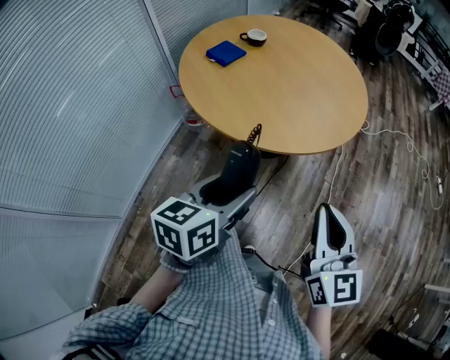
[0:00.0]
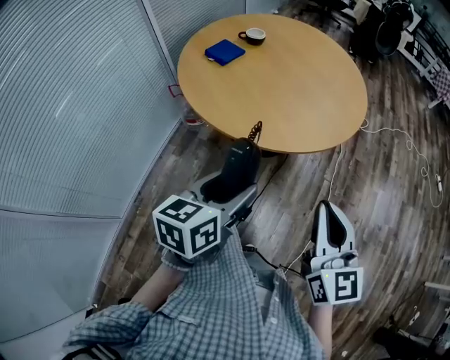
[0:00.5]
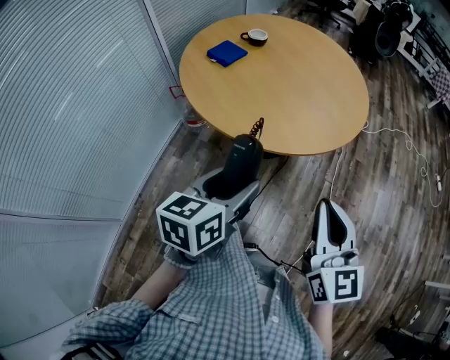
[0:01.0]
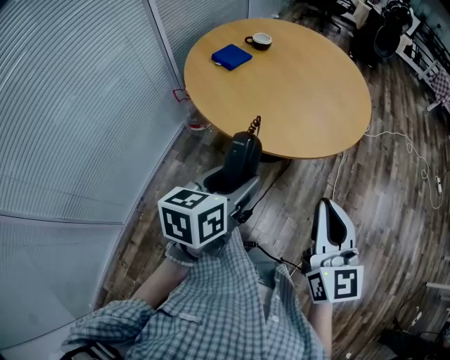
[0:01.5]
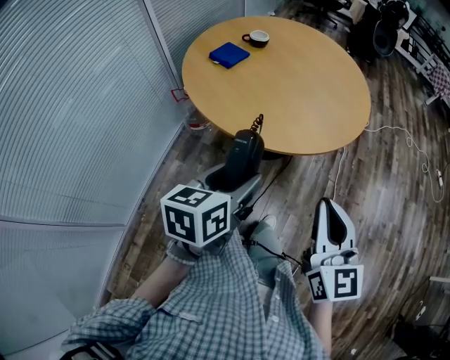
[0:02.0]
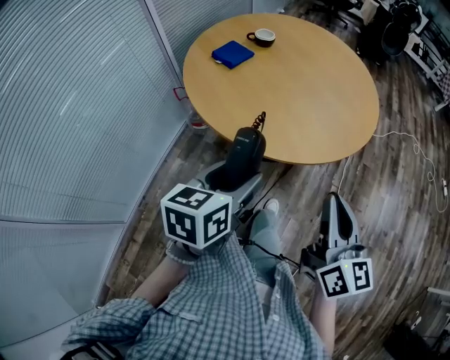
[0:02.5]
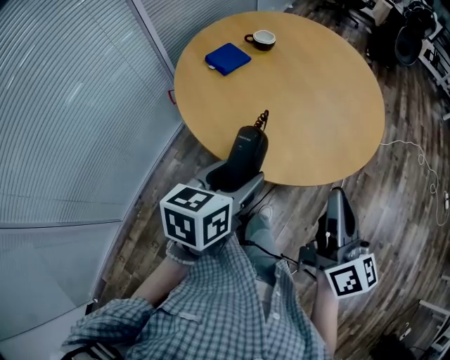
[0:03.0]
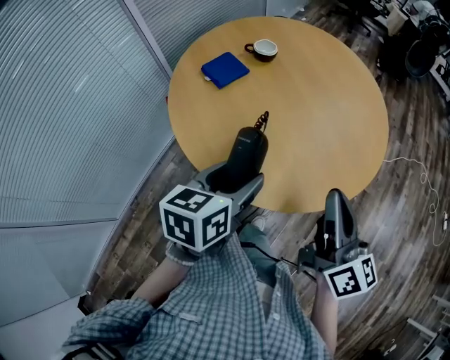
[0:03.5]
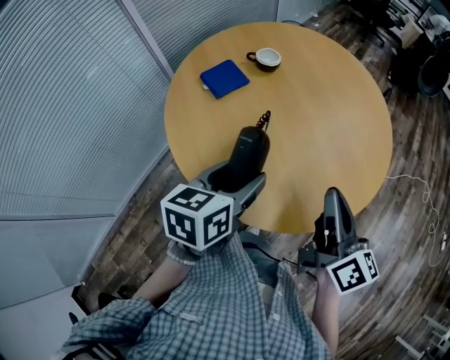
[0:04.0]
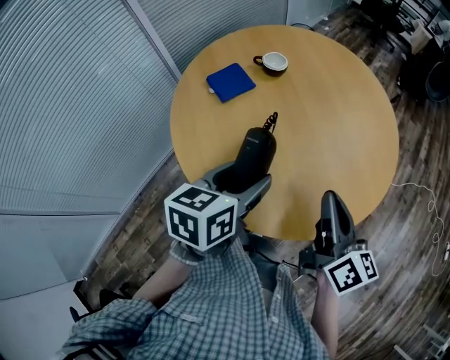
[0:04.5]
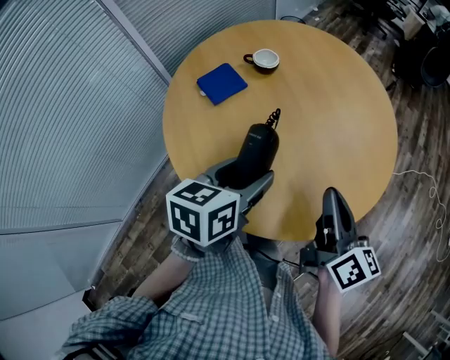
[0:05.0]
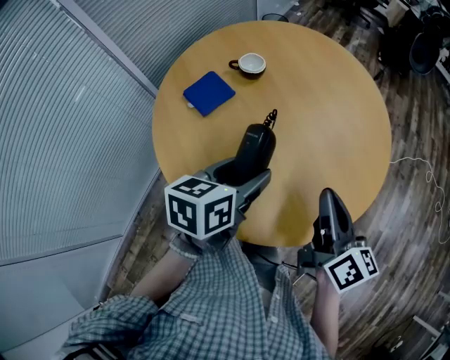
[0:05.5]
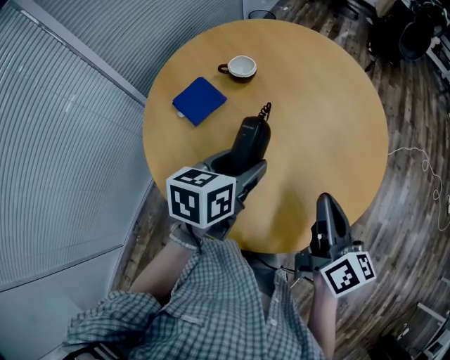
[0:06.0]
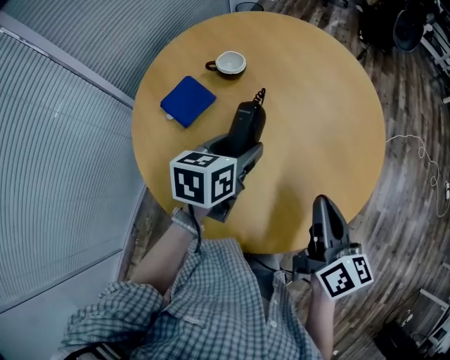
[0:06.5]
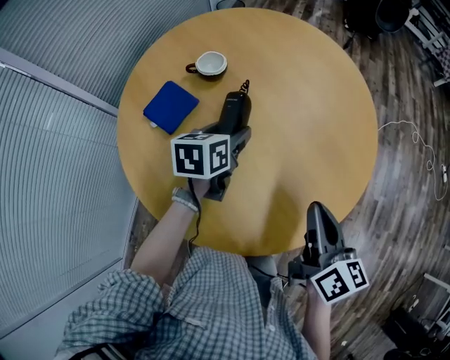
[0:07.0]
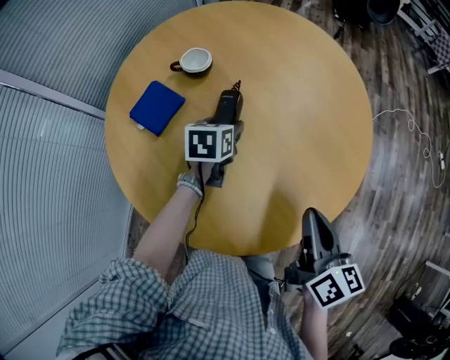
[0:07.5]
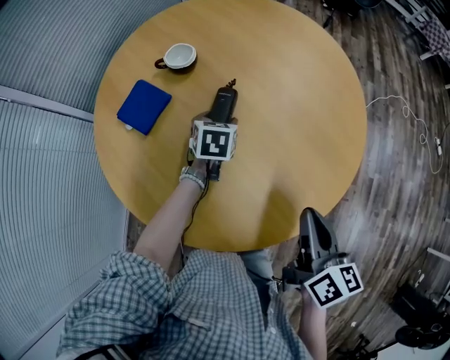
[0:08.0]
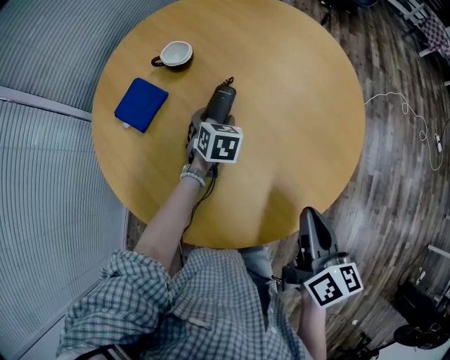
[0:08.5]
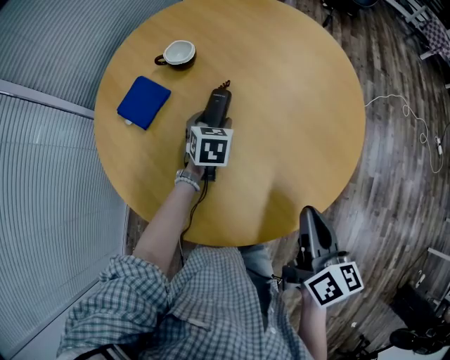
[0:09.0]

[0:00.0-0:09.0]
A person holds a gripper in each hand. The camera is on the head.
0.0 to 2.0 s: There are only small adjustments of the grippers.
2.0 to 4.5 s: The grippers both shift forward by roughly 35 cm. The right gripper turns by some 40 degrees.
4.5 to 7.0 s: The left gripper travels forward and downward by approximately 25 cm; the right gripper ends up about 5 cm from where it was, and turns by approximately 20 degrees.
7.0 to 9.0 s: The right gripper shifts by approximately 5 cm; the left gripper heads downward, covering approximately 10 cm, and rotates about 30 degrees.

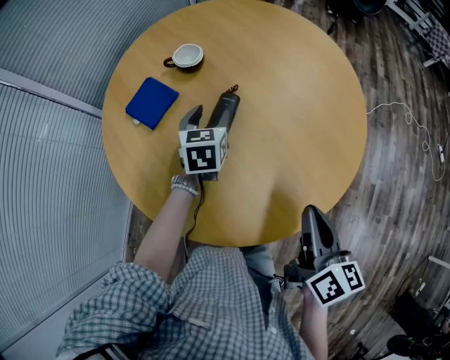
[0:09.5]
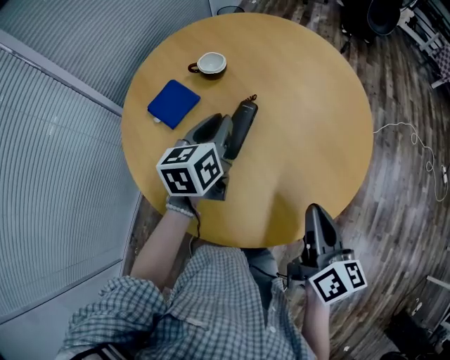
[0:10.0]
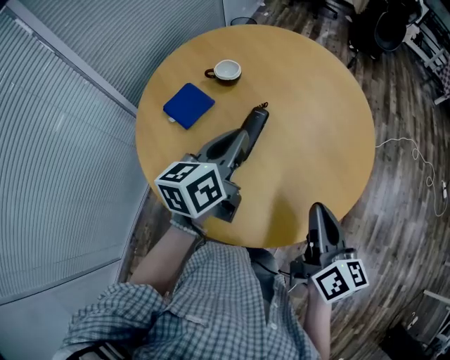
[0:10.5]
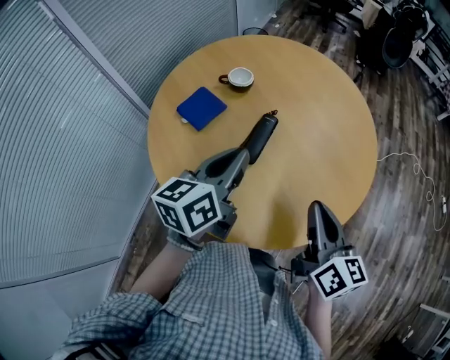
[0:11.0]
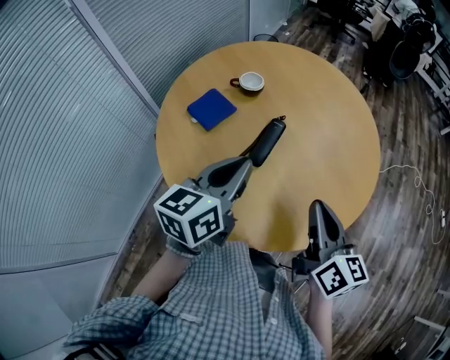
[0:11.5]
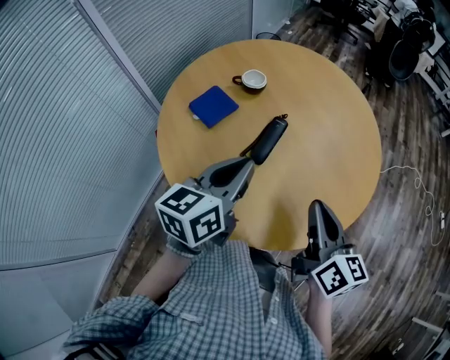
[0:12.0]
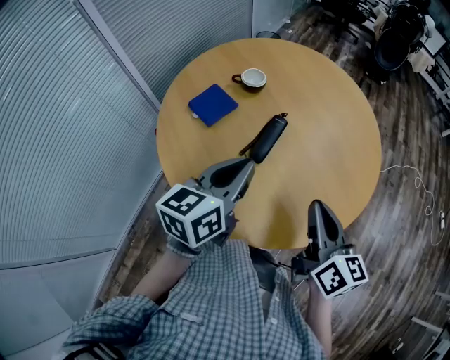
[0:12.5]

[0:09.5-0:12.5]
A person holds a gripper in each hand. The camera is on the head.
9.5 to 11.0 s: The right gripper is displaced upward and to the left by about 10 cm. The left gripper heads upward and backward, covering roughly 25 cm, turns by roughly 40 degrees, and closes.
11.0 to 12.5 s: There are only small adjustments of the grippers.

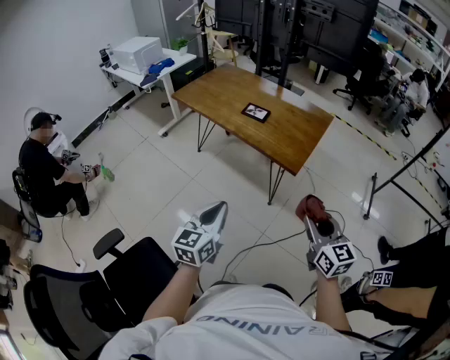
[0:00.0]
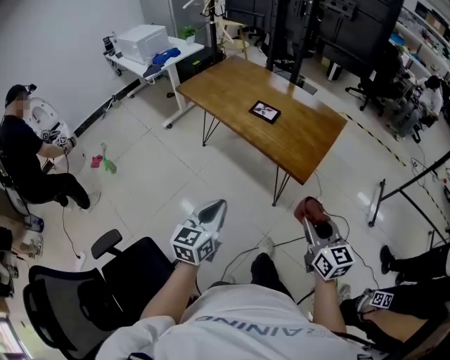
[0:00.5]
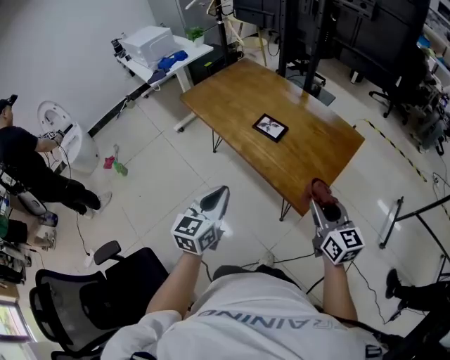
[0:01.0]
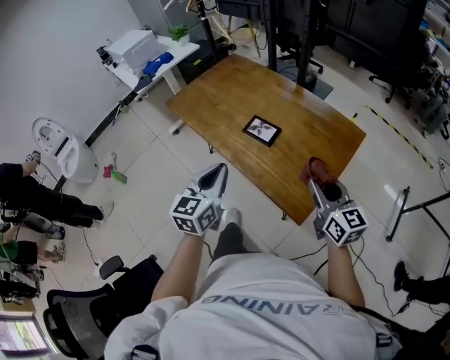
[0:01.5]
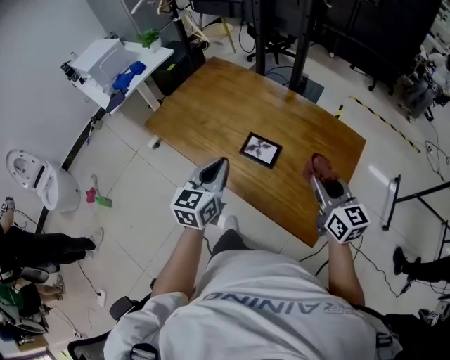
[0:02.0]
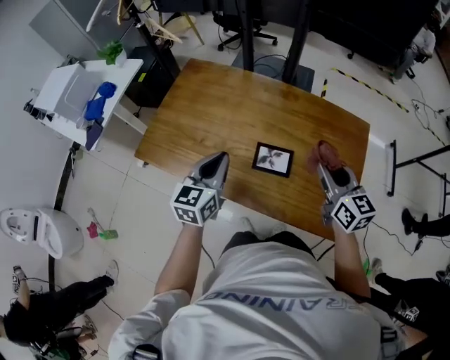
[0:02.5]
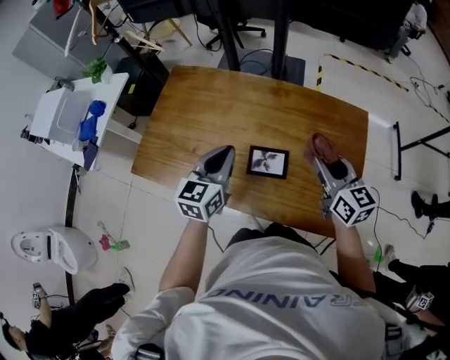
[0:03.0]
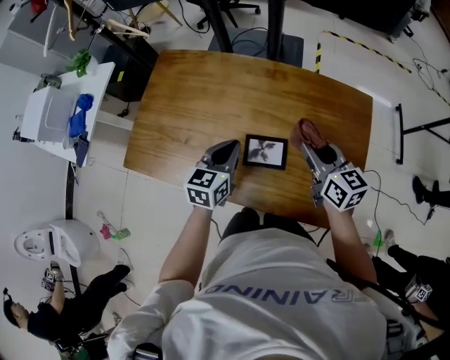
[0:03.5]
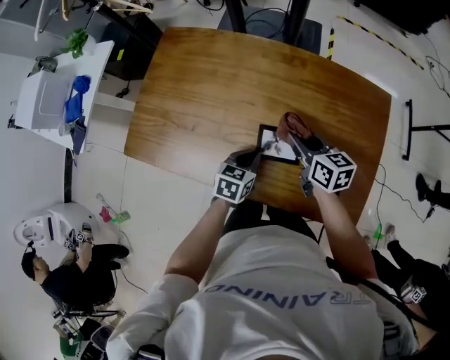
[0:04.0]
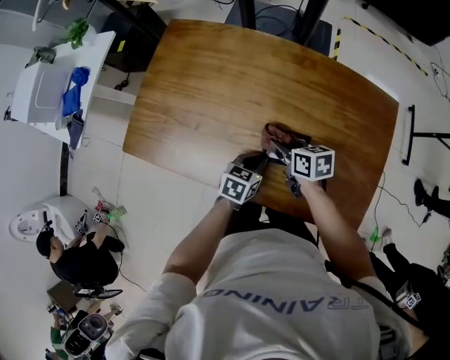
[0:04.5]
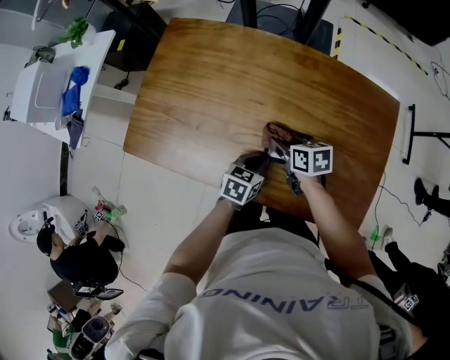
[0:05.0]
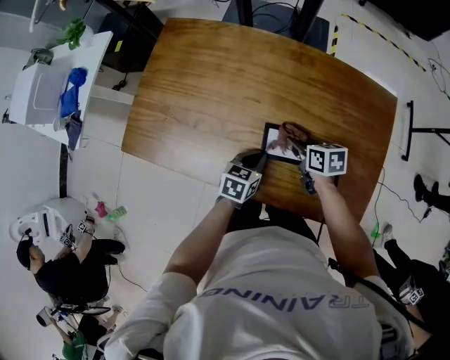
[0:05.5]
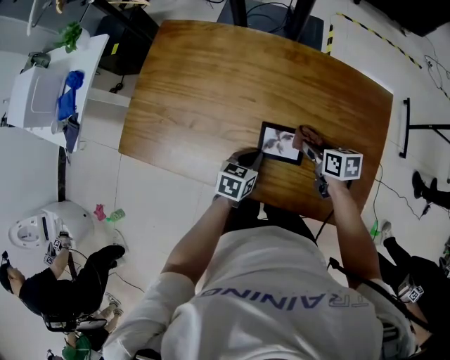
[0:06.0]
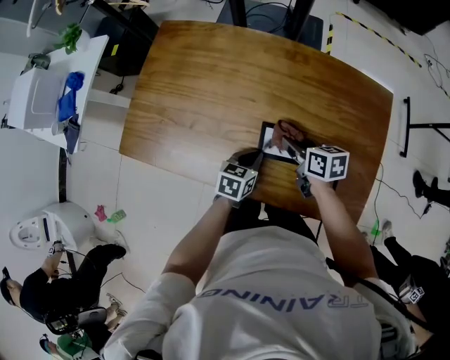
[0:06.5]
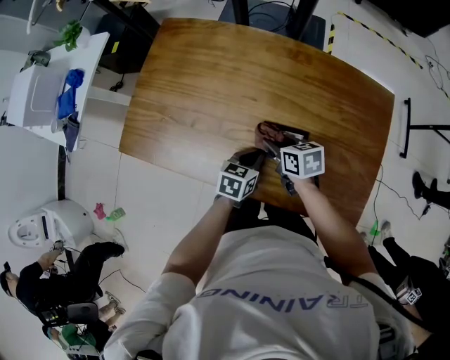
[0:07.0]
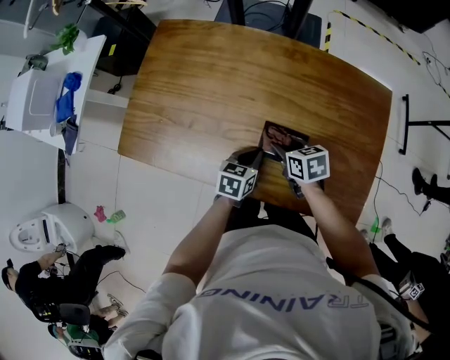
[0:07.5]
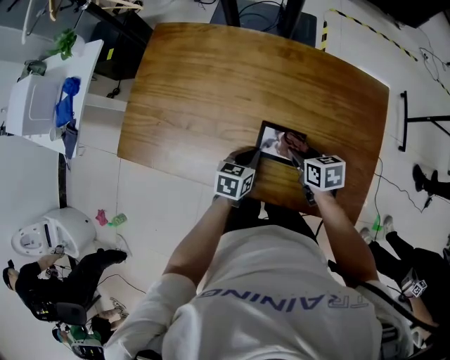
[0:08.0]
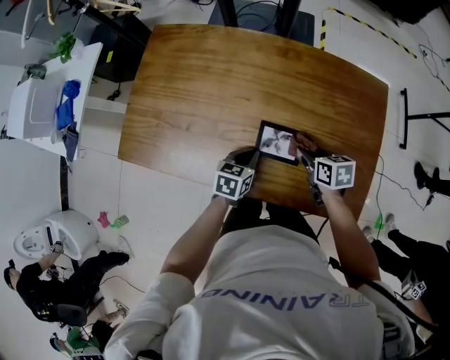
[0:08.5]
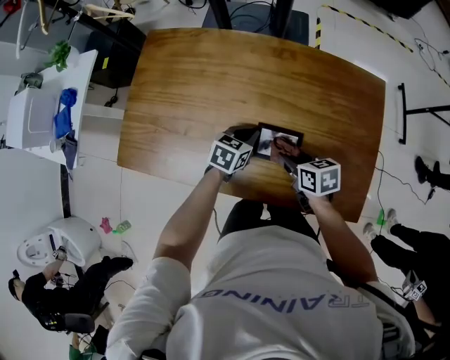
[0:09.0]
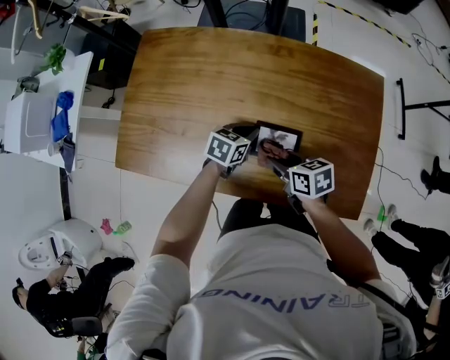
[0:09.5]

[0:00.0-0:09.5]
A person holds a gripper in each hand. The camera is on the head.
0.0 to 2.0 s: The pair of grippers is taken forward, approximately 50 cm.
2.0 to 4.0 s: The left gripper shifts approximately 25 cm downward and forward, and tips its fingers downward by some 30 degrees; the right gripper goes some 25 cm forward, downward and to the left, and rotates roughly 30 degrees.
4.0 to 5.5 s: The right gripper travels downward by approximately 10 cm, and turns by about 20 degrees.
5.5 to 7.5 s: The right gripper travels to the left and back again, some 5 cm each way.
7.5 to 9.5 s: The right gripper reaches approximately 10 cm to the right, then returns. Meanwhile the left gripper travels forward by some 5 cm.

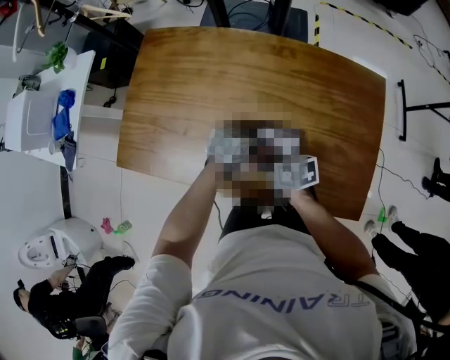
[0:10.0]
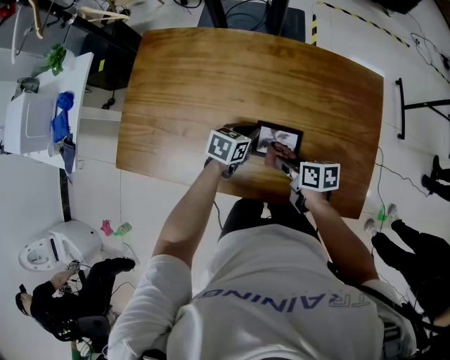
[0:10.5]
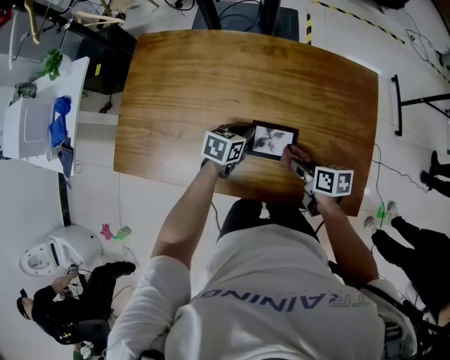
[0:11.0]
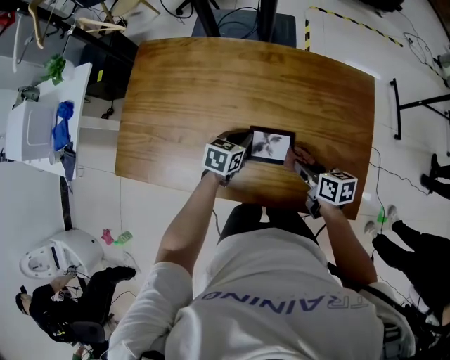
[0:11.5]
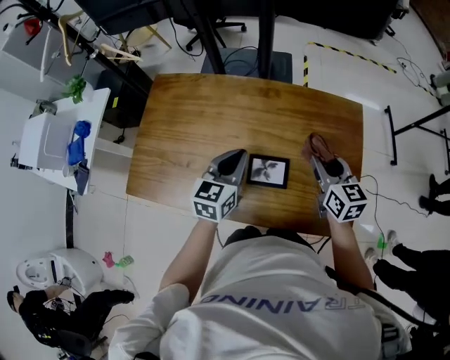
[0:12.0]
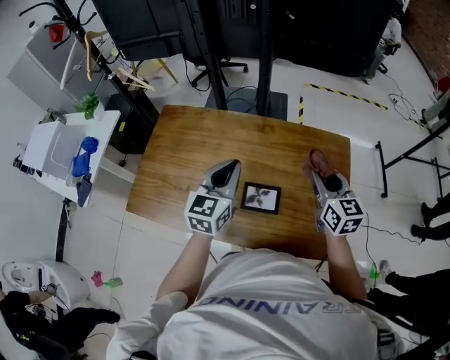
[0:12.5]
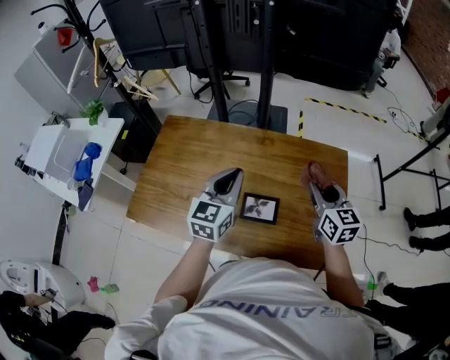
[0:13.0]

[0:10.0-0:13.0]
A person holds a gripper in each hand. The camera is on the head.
10.0 to 11.5 s: The right gripper travels to the right by roughly 15 cm.
11.5 to 13.0 s: The two grippers go some 25 cm upward. The right gripper changes its angle by some 40 degrees; the left gripper tips its fingers upward by roughly 30 degrees.

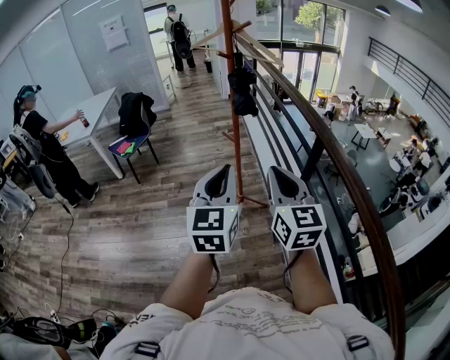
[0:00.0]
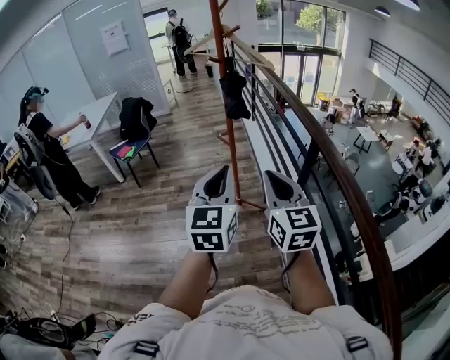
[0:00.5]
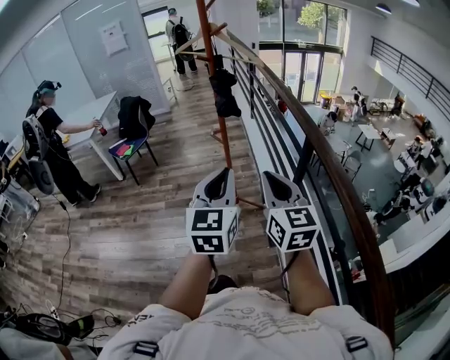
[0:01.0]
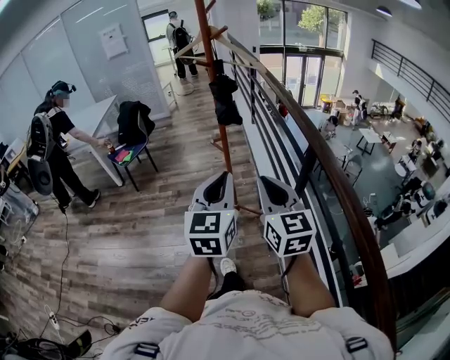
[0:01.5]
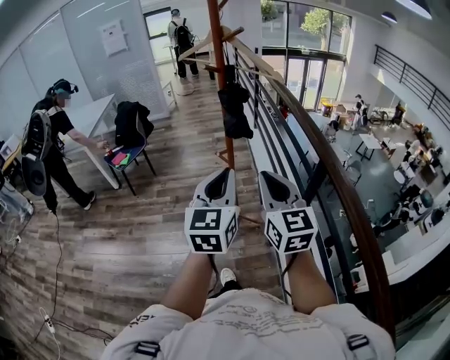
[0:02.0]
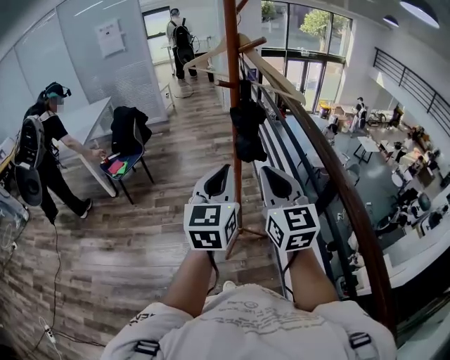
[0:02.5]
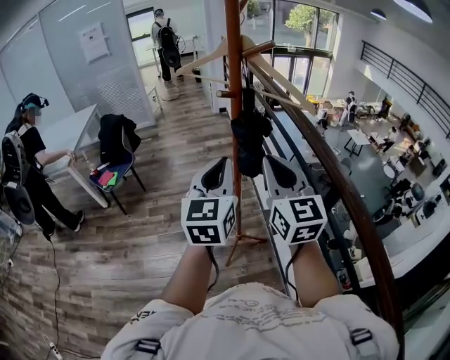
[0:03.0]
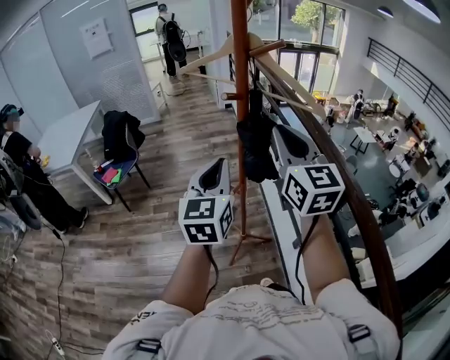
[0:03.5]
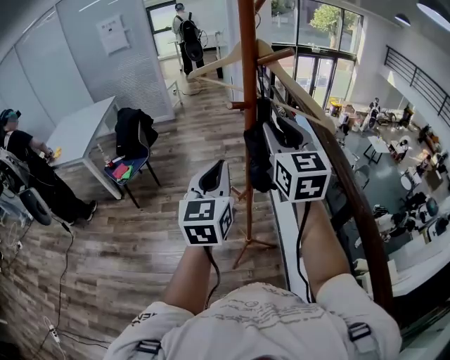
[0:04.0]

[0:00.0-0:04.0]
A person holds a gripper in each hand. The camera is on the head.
0.0 to 2.0 s: The left gripper goes about 15 cm forward and to the right. The right gripper is displaced forward by some 15 cm.
2.0 to 4.0 s: Both grippers travel together forward, some 30 cm. The right gripper opens.
